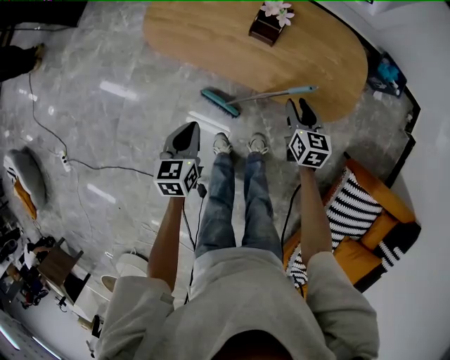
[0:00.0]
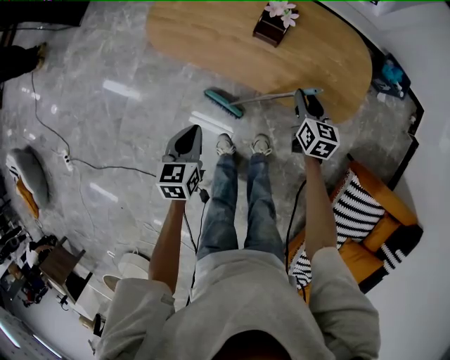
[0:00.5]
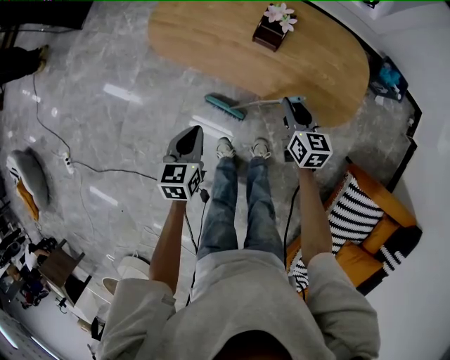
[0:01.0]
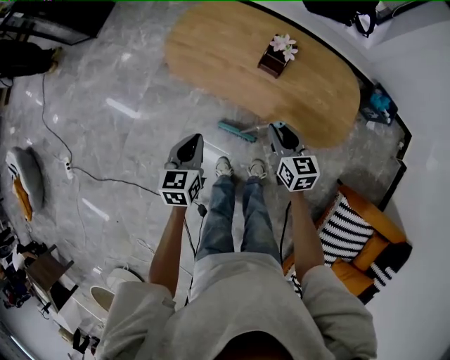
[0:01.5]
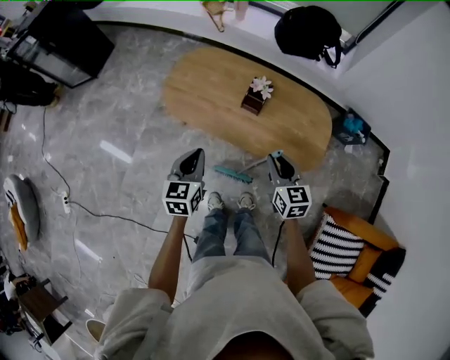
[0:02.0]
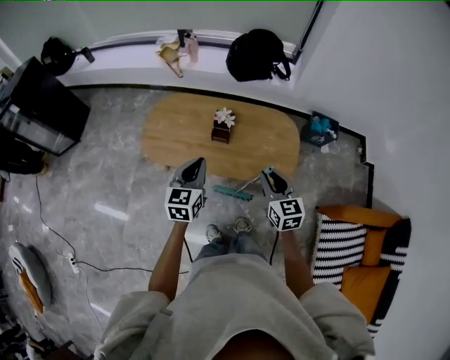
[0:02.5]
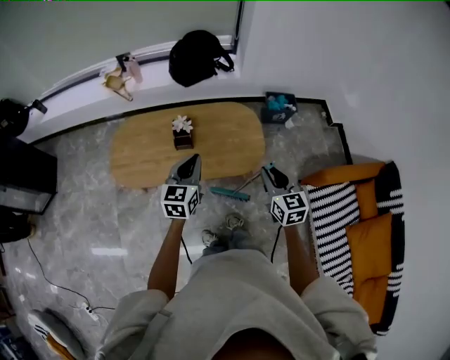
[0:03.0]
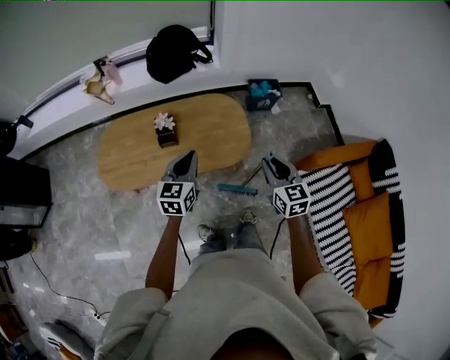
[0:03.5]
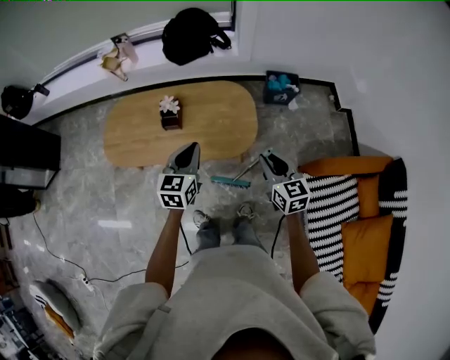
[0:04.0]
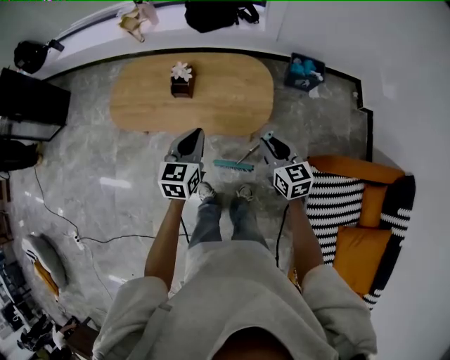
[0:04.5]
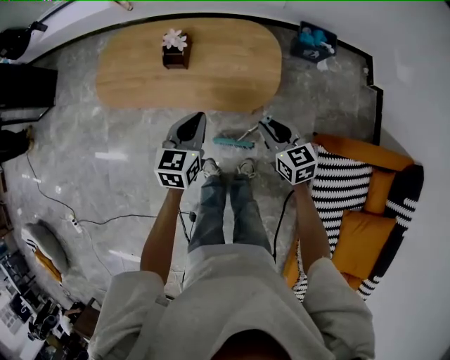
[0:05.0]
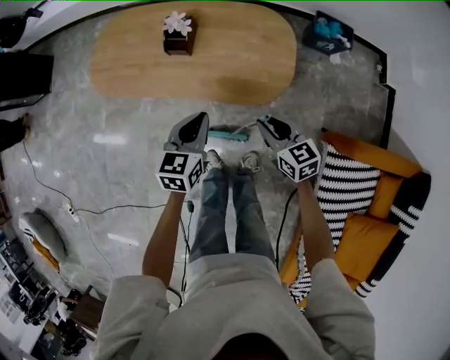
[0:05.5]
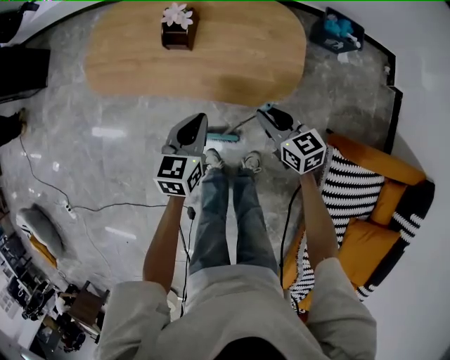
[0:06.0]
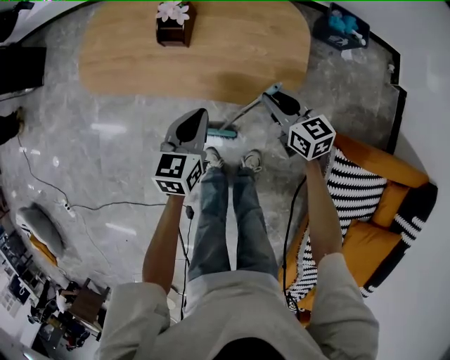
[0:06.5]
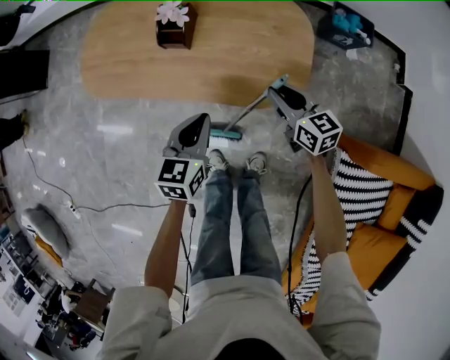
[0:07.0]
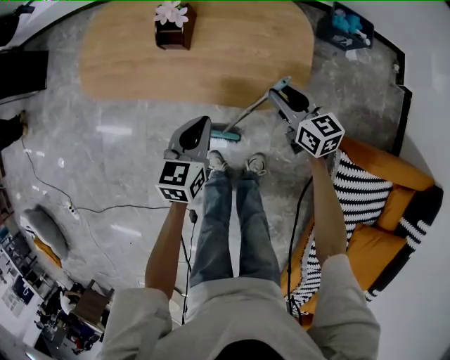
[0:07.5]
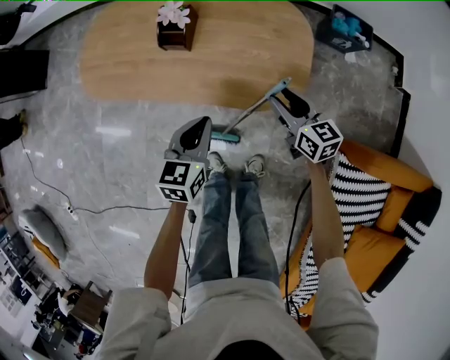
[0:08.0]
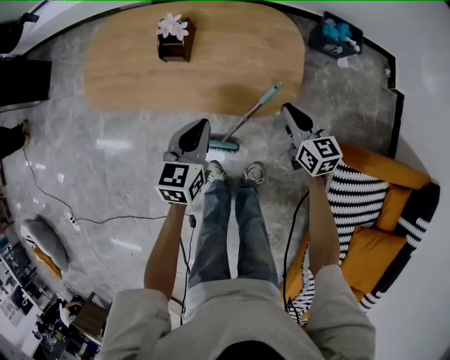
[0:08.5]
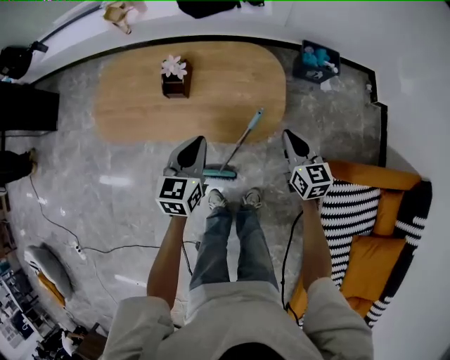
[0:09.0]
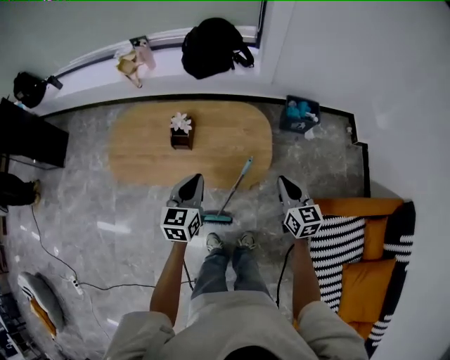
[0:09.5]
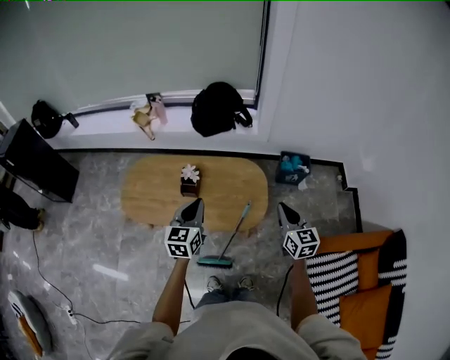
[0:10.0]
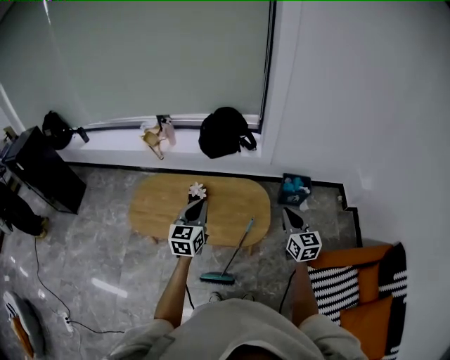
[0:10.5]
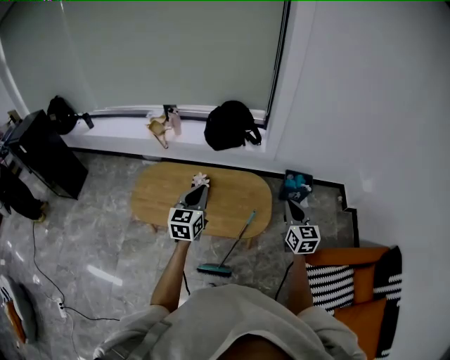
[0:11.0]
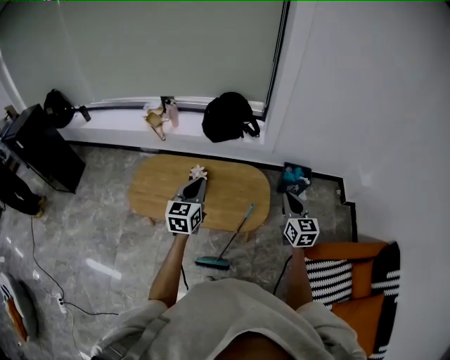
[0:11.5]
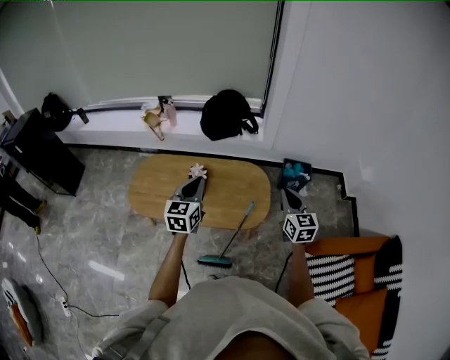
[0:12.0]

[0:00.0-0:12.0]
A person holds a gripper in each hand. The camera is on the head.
0:00.0 to 0:02.0: The grippers both shift upward by approximately 20 cm.
0:02.0 to 0:04.0: The right gripper changes place by some 30 cm, and changes its angle by approximately 20 degrees, while the left gripper moves approximately 30 cm, and swivels roughly 30 degrees.
0:04.0 to 0:06.0: The grippers both shift downward by some 25 cm. The right gripper changes its angle by some 30 degrees.
0:06.0 to 0:08.0: The right gripper heads forward, covering roughly 5 cm, and opens up.
0:08.0 to 0:10.0: Both grippers move upward, approximately 30 cm. The left gripper changes its angle by approximately 20 degrees. Meanwhile the right gripper changes its angle by approximately 30 degrees, and closes its fingers.
0:10.0 to 0:12.0: Both grippers travel together upward, about 5 cm.

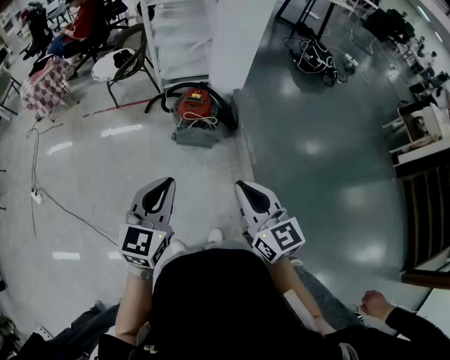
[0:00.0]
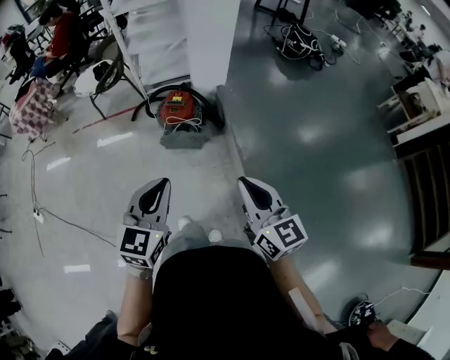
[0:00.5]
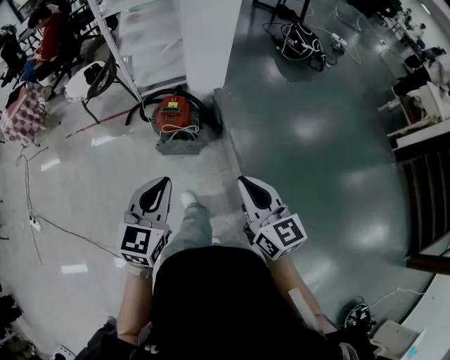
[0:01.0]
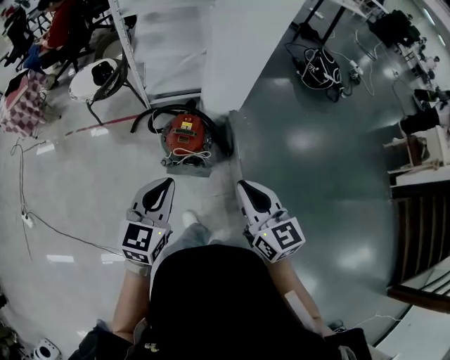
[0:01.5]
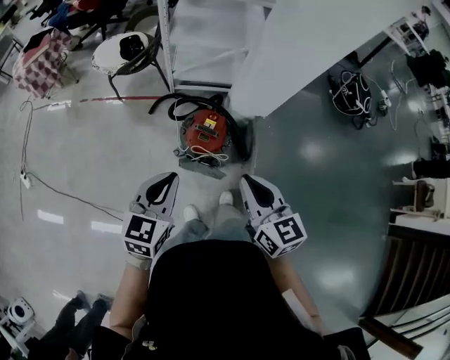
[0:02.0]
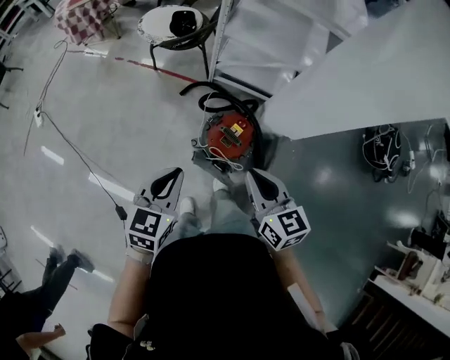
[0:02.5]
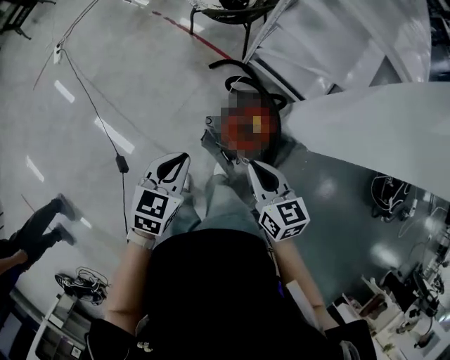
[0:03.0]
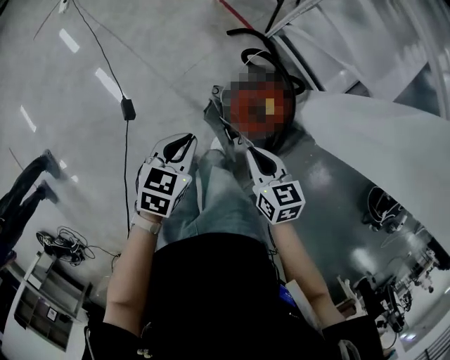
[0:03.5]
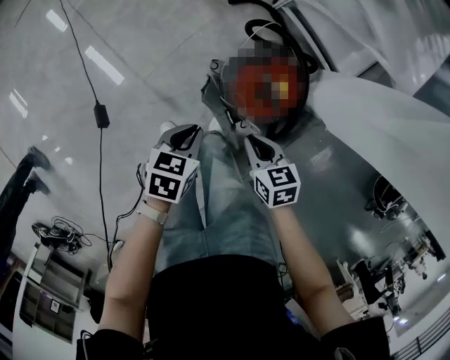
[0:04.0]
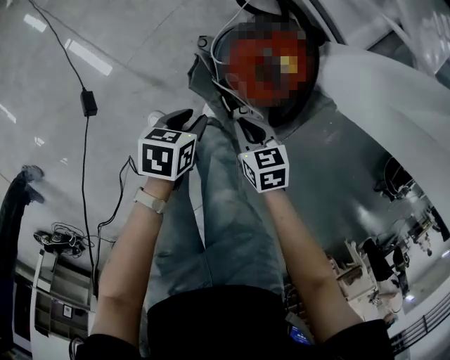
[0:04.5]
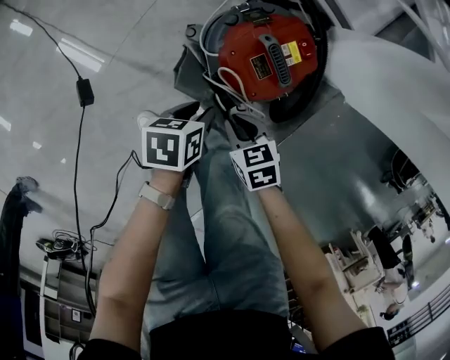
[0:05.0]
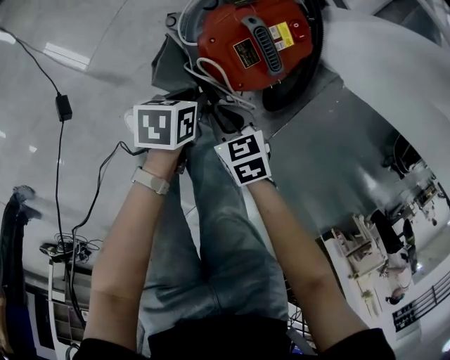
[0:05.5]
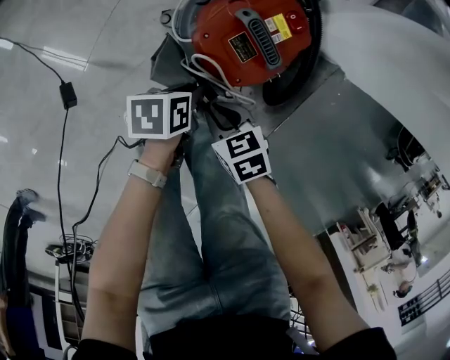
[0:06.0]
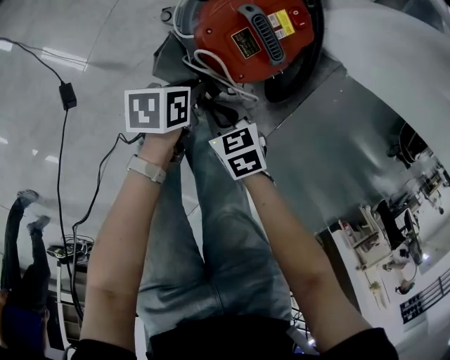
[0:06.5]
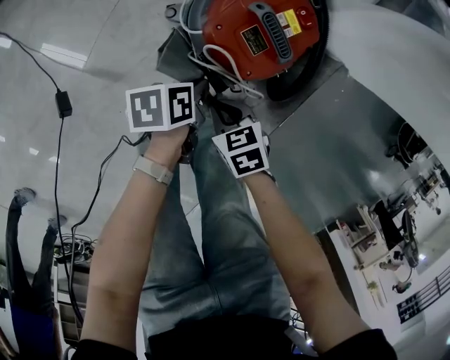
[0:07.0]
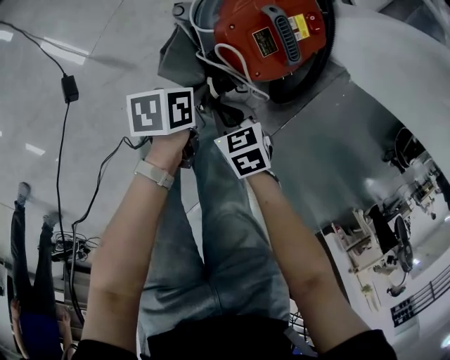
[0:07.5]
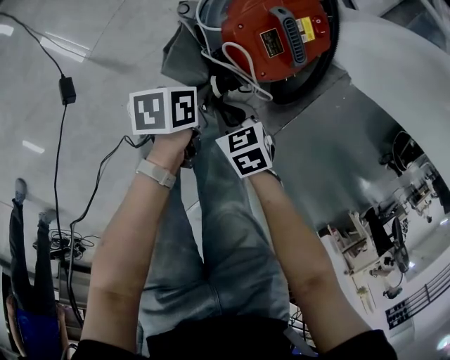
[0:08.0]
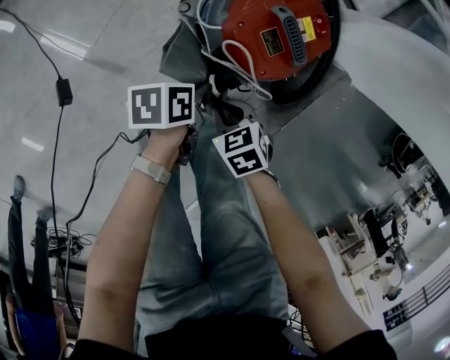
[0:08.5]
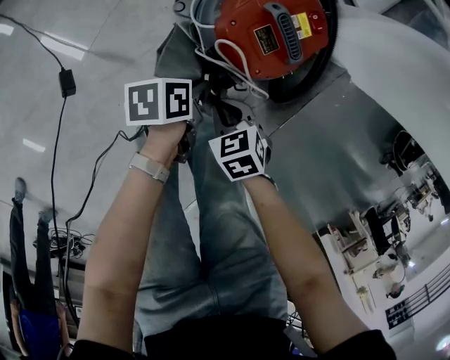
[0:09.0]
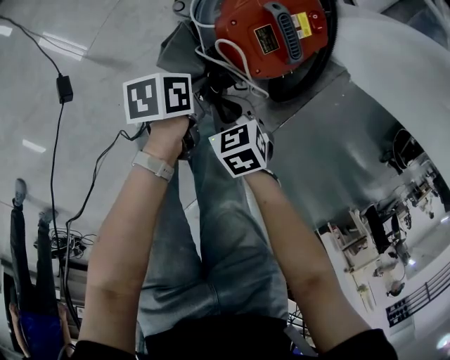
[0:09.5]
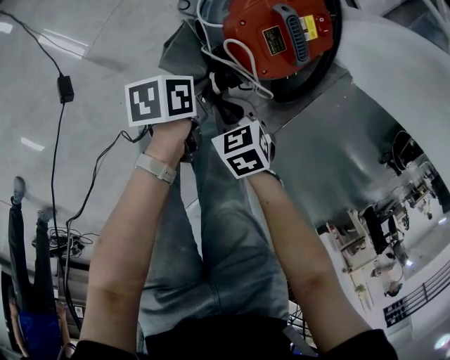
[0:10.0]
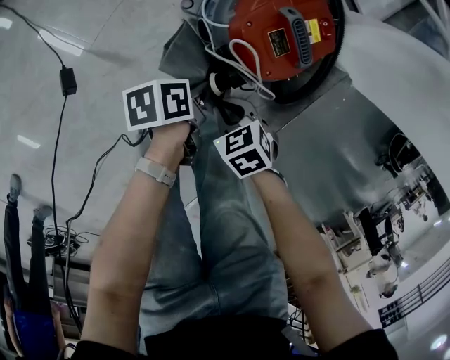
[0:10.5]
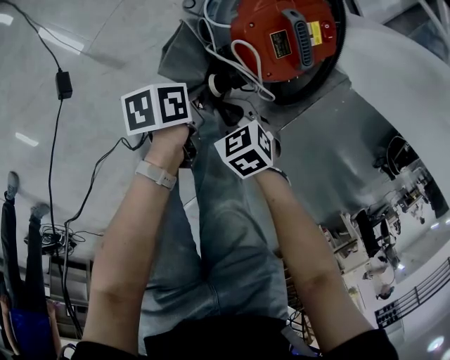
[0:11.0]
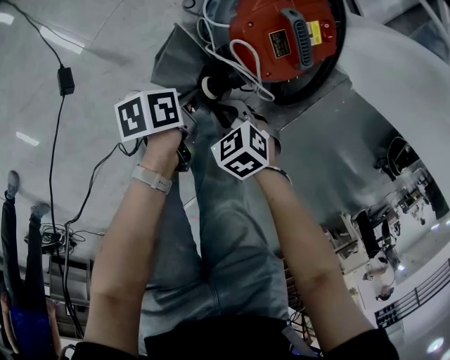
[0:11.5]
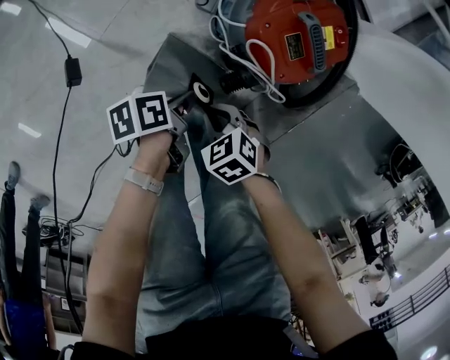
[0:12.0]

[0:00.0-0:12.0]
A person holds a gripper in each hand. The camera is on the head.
0:00.0 to 0:02.0: The right gripper ends up roughly 40 cm from where it was.
0:02.0 to 0:04.0: The right gripper heads downward, covering about 40 cm, and tilts its fingers about 40 degrees downward.
0:04.0 to 0:06.0: The right gripper goes roughly 25 cm downward.
0:10.0 to 0:12.0: The right gripper ends up some 5 cm from where it was.

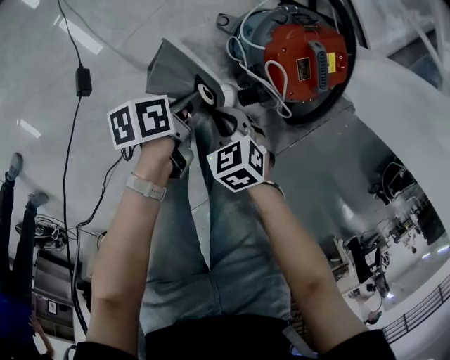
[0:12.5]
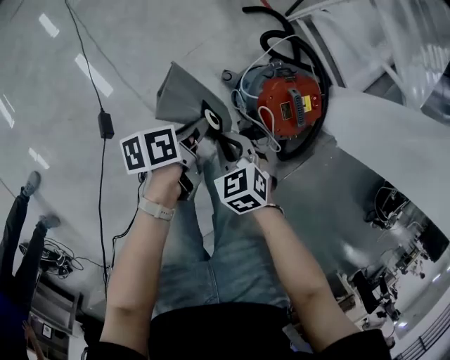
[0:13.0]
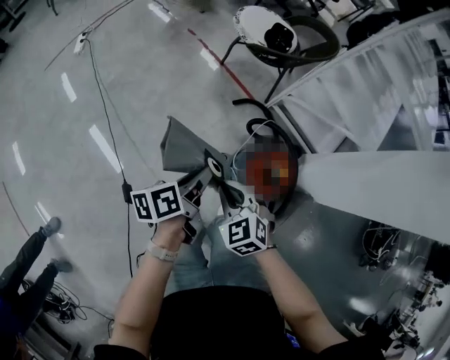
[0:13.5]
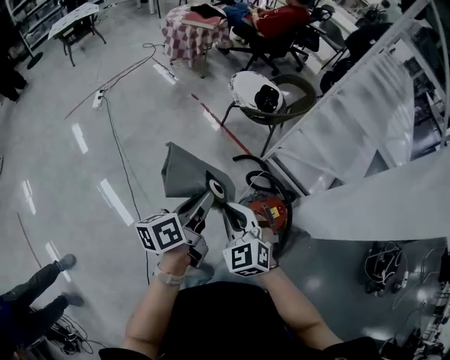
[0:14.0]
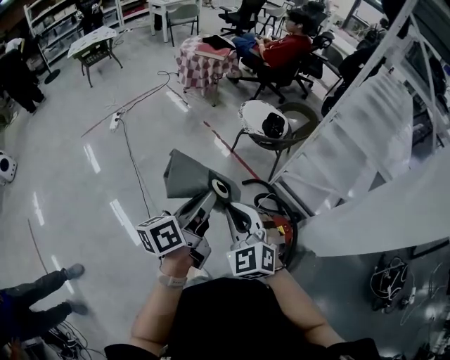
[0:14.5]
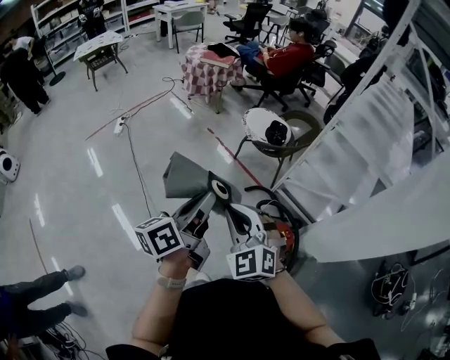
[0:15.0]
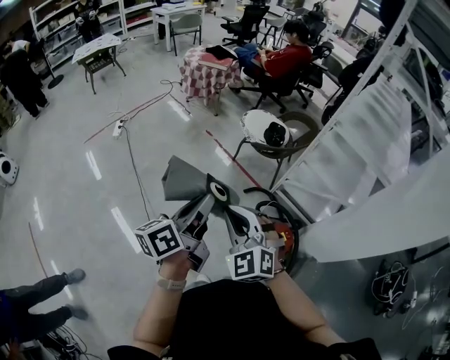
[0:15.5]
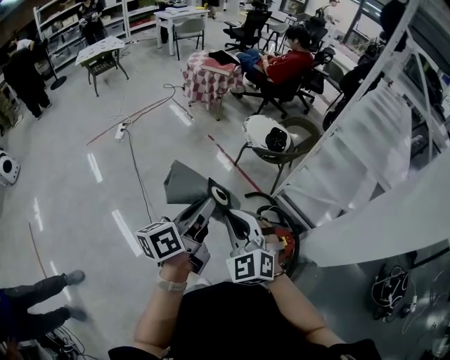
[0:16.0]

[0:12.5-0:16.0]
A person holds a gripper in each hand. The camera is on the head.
0:12.5 to 0:14.5: The right gripper is displaced upward by approximately 70 cm, and tips its fingers upward by about 40 degrees.
